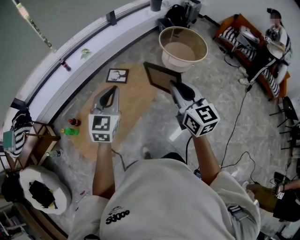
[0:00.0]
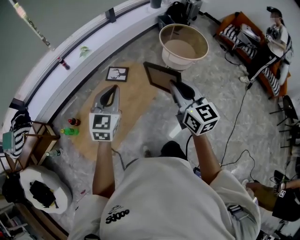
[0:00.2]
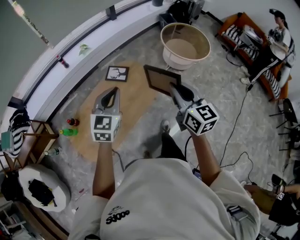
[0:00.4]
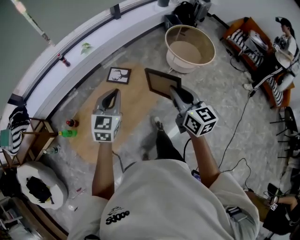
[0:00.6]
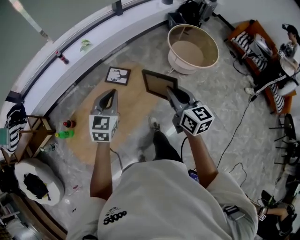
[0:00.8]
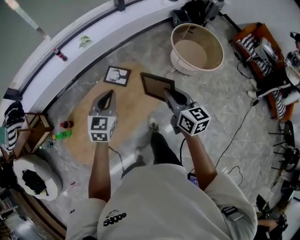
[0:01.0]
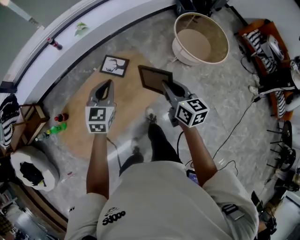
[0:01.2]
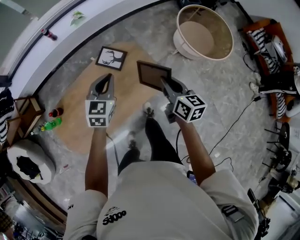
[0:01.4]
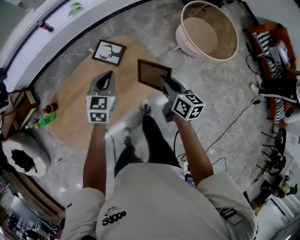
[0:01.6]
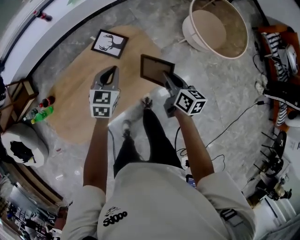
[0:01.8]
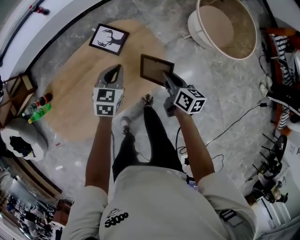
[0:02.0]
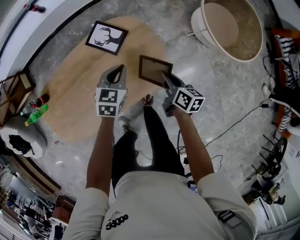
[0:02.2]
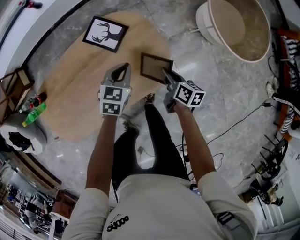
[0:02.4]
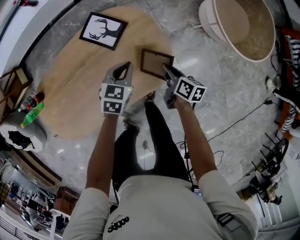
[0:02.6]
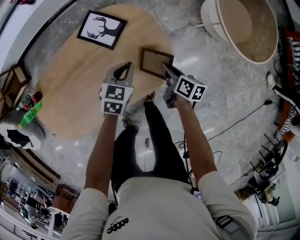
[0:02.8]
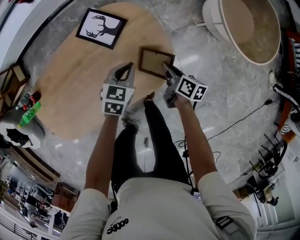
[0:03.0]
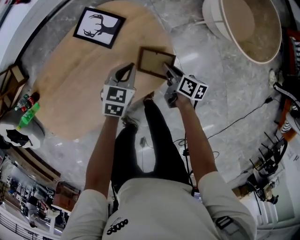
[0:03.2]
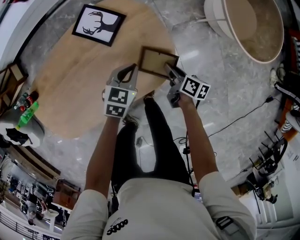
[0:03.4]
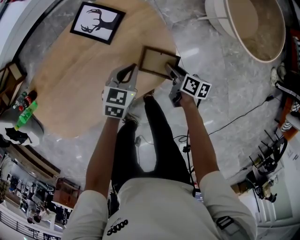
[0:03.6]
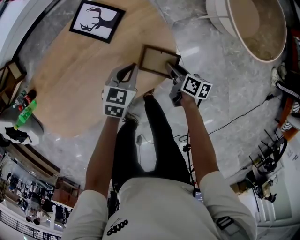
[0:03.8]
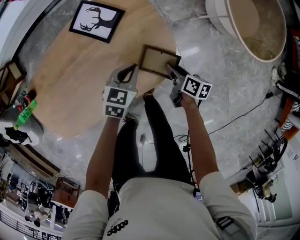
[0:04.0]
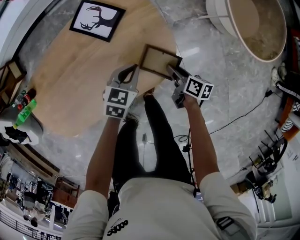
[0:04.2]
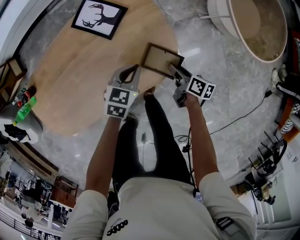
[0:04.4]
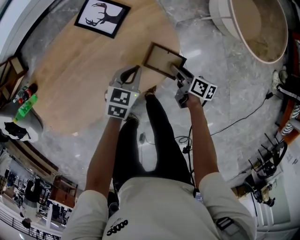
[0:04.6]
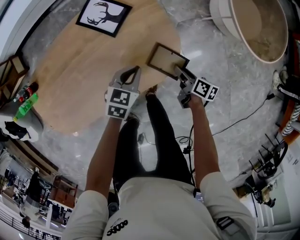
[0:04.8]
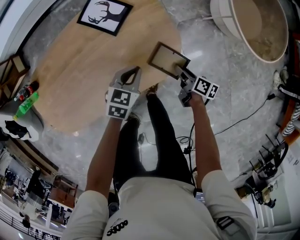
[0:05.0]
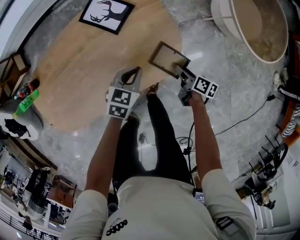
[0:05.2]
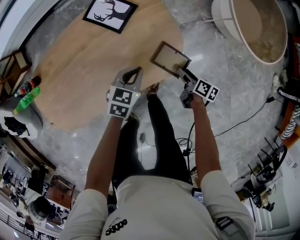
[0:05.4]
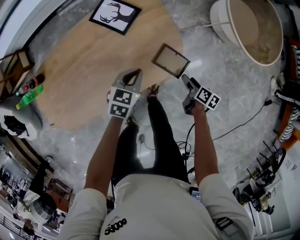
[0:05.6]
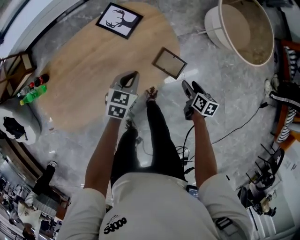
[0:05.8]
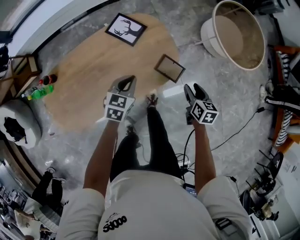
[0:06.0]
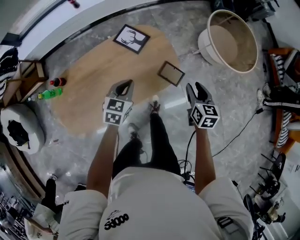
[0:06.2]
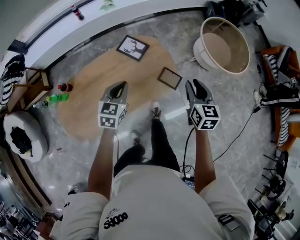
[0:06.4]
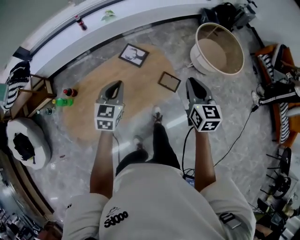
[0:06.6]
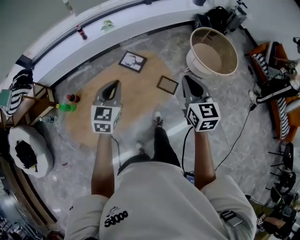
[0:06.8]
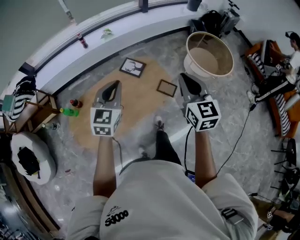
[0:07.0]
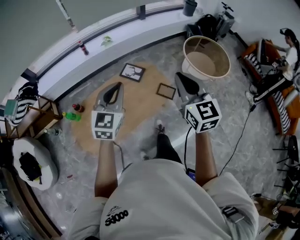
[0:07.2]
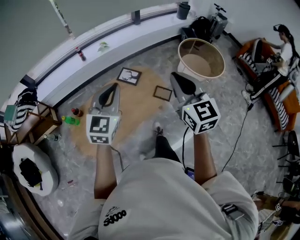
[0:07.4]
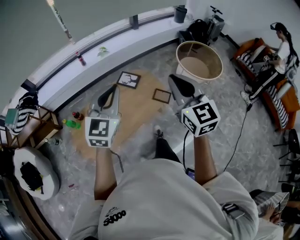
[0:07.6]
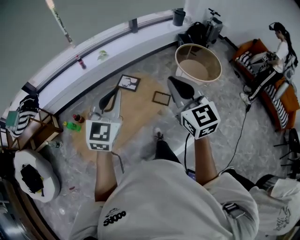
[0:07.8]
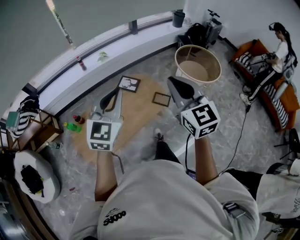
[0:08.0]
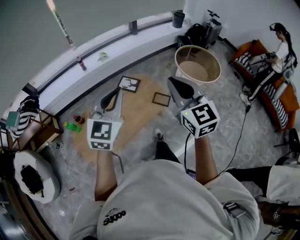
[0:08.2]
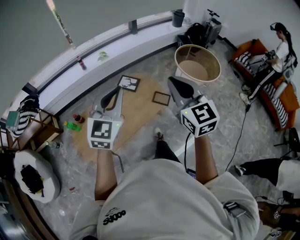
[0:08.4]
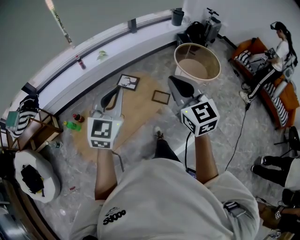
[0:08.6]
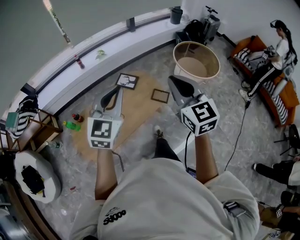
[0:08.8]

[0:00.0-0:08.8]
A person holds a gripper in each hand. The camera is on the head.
0:00.0 to 0:01.4: The two grippers go roughly 35 cm forward and downward. The right gripper swivels about 30 degrees; the left gripper swivels about 20 degrees.
0:01.4 to 0:03.0: The grippers both shift downward by roughly 35 cm. The right gripper changes its angle by about 40 degrees. Meanwhile the left gripper rotates about 20 degrees.
0:03.0 to 0:04.4: The right gripper moves roughly 5 cm, and opens. The left gripper changes place by roughly 5 cm.
0:04.4 to 0:05.8: The right gripper heads backward, upward and to the right, covering about 15 cm, rotates approximately 20 degrees, and opens its fingers. Meanwhile the left gripper goes some 10 cm upward and backward.
0:05.8 to 0:07.4: Both grippers travel together upward, about 60 cm. The left gripper tips its fingers upward by some 40 degrees. Meanwhile the right gripper angles its fingers upward, by approximately 40 degrees, and closes up.
0:07.4 to 0:08.8: The two grippers go some 5 cm backward.

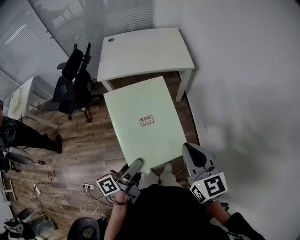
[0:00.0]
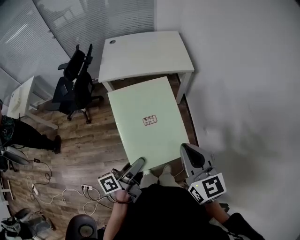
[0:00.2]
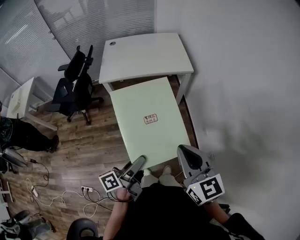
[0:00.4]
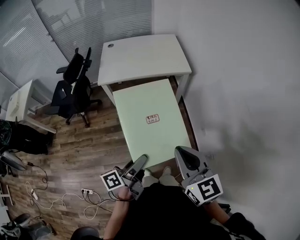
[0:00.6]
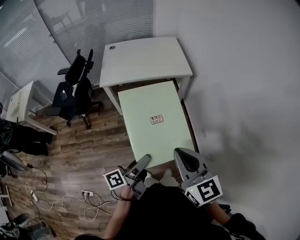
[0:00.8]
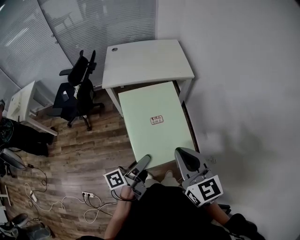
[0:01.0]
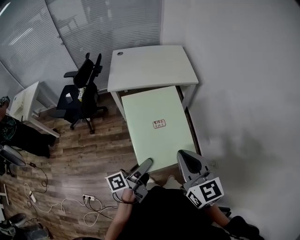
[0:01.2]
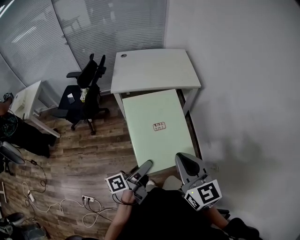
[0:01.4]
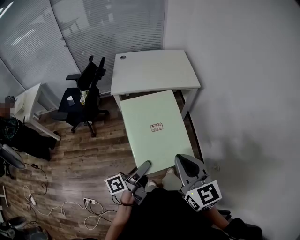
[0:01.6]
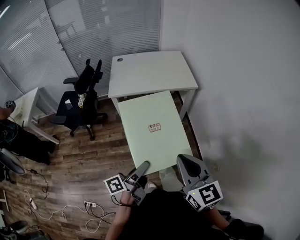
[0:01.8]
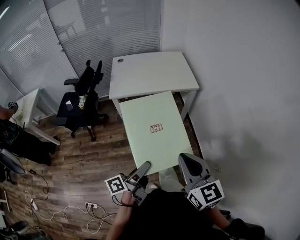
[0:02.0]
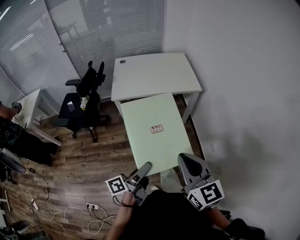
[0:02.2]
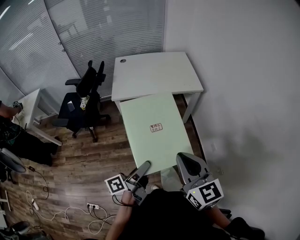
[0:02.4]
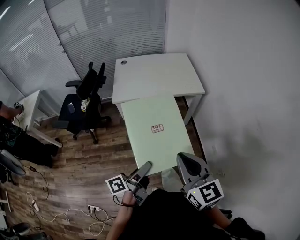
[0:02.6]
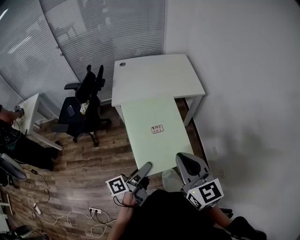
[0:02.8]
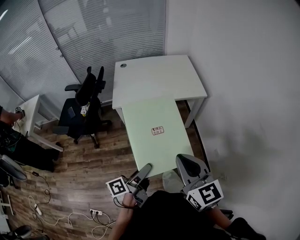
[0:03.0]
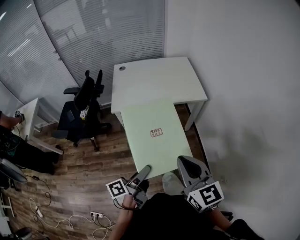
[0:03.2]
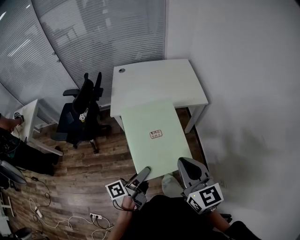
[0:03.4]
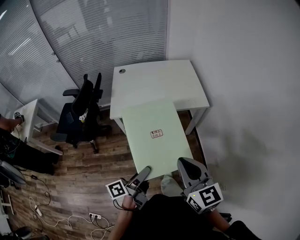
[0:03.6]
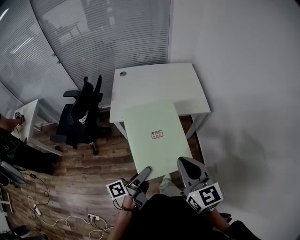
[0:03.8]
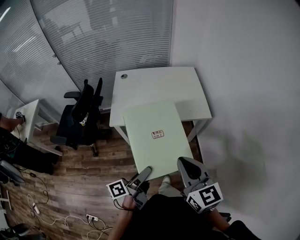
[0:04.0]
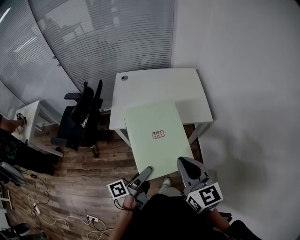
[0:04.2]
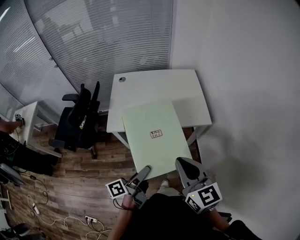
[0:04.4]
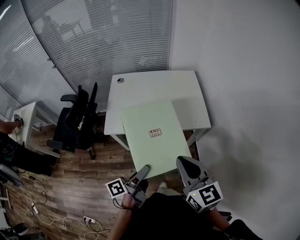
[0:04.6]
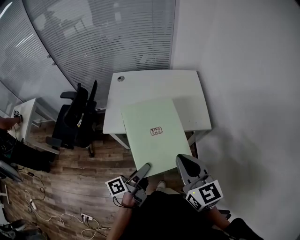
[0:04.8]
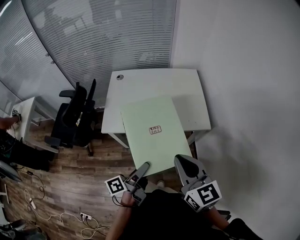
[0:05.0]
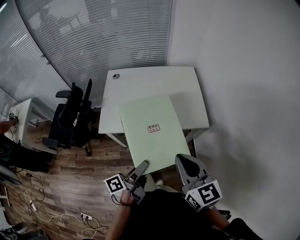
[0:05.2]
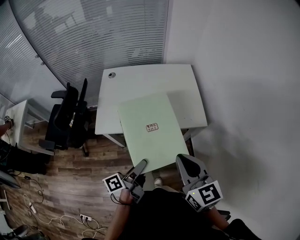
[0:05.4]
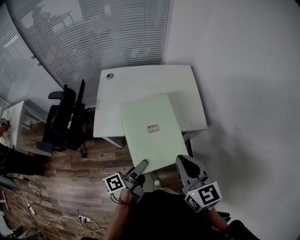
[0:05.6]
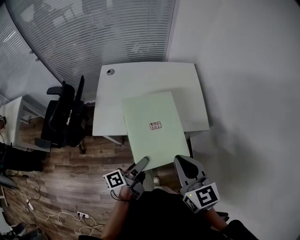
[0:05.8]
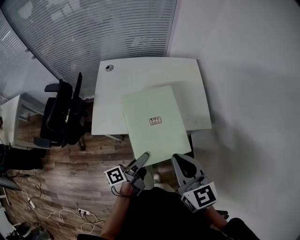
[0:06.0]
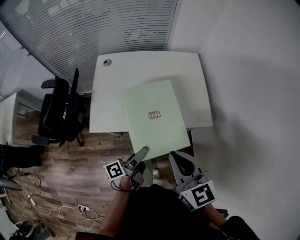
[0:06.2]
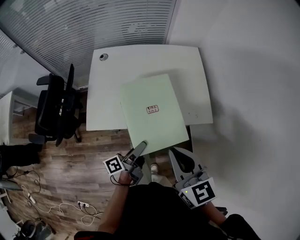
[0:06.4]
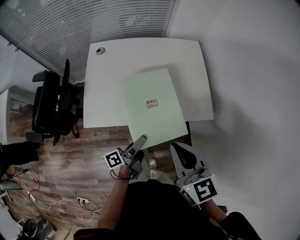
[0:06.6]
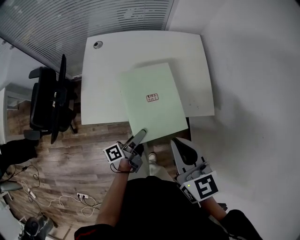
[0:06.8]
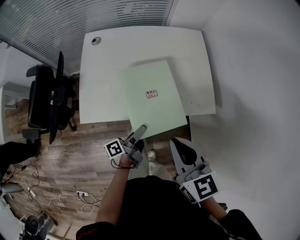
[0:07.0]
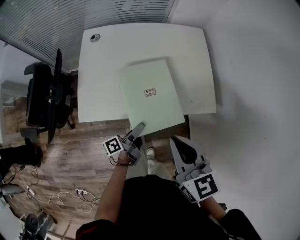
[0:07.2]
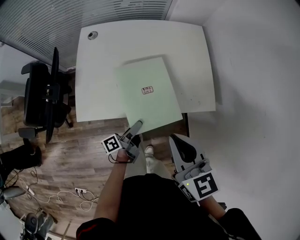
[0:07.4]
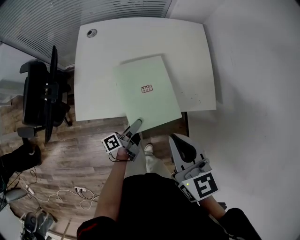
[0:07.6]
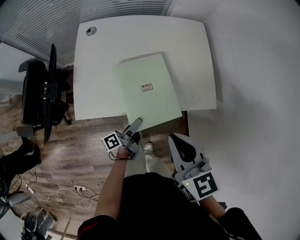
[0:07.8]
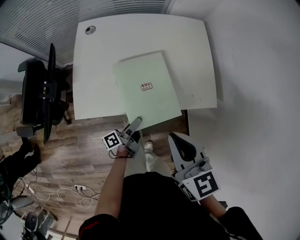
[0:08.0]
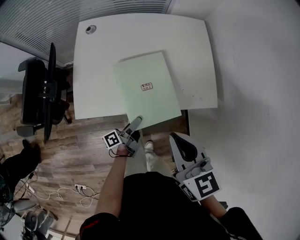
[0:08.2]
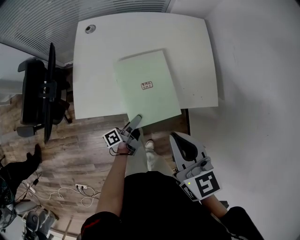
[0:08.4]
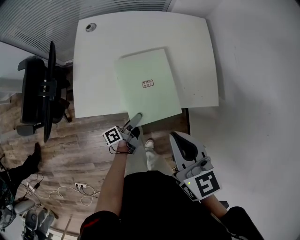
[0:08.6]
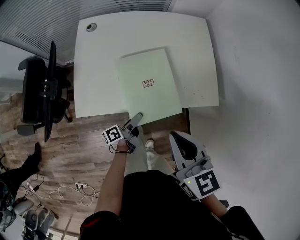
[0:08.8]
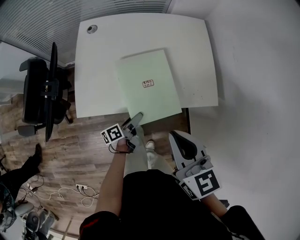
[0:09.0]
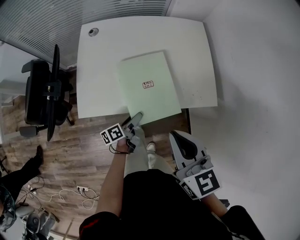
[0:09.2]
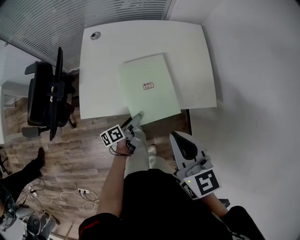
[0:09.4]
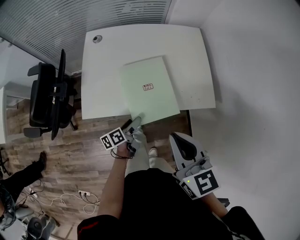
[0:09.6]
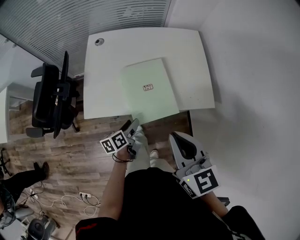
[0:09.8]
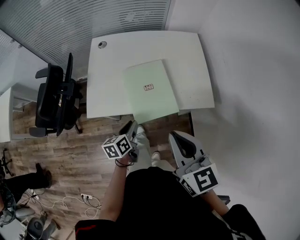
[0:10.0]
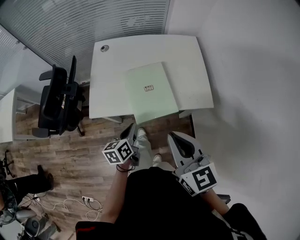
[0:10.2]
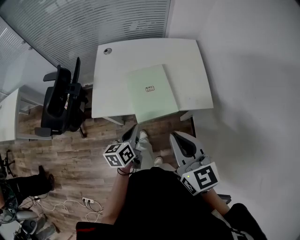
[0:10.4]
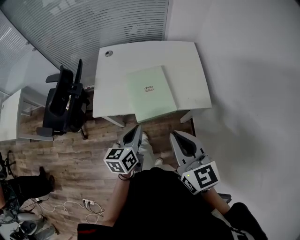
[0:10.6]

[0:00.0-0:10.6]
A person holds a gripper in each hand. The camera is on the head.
0:00.0 to 0:01.6: The left gripper heads to the left, covering roughly 5 cm. The right gripper goes approximately 15 cm to the left.
0:01.6 to 0:03.0: Both grippers travel together forward, some 10 cm.
0:03.0 to 0:04.6: Both grippers travel together forward, about 25 cm.
0:04.6 to 0:06.0: The left gripper shifts some 15 cm forward and downward. Meanwhile the right gripper travels forward by approximately 10 cm.
0:06.0 to 0:07.6: The right gripper heads forward and downward, covering about 10 cm. The left gripper moves downward and forward, some 20 cm.
0:07.6 to 0:09.0: The grippers make only small movements.
0:09.0 to 0:10.6: The right gripper is displaced backward and upward by approximately 15 cm; the left gripper shifts roughly 25 cm upward, twists about 50 degrees clockwise, seen from behind, and closes its fingers.

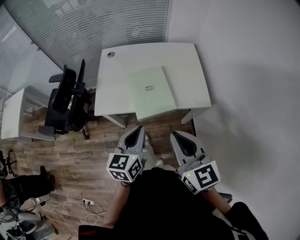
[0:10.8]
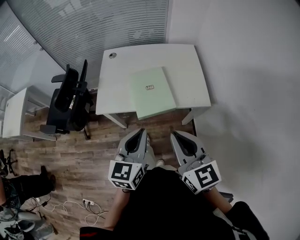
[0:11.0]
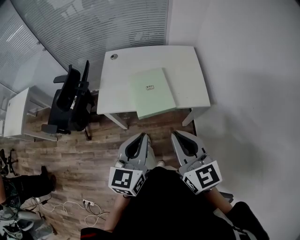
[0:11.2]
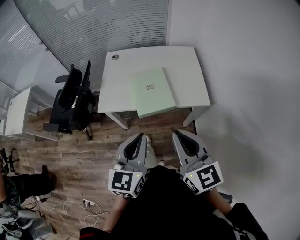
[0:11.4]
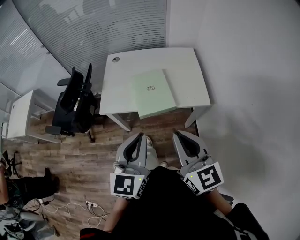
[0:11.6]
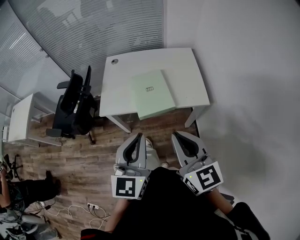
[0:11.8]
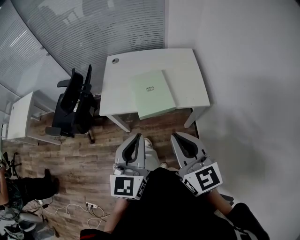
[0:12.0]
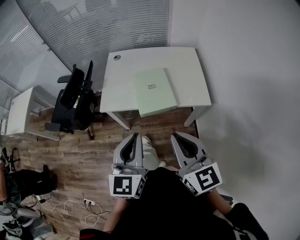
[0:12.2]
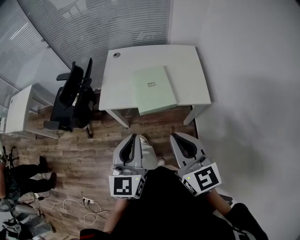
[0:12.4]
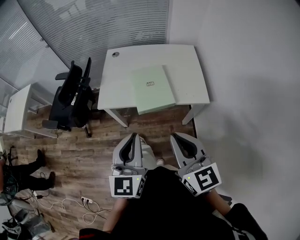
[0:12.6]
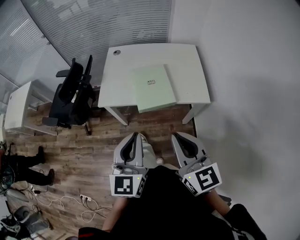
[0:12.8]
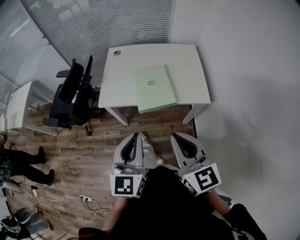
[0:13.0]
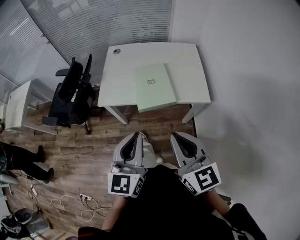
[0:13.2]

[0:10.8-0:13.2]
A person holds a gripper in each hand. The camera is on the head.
0:10.8 to 0:12.0: The right gripper shifts some 5 cm backward. The left gripper shifts approximately 15 cm upward and backward, and changes its angle by about 20 degrees.
0:12.0 to 0:13.2: The grippers move only a little.

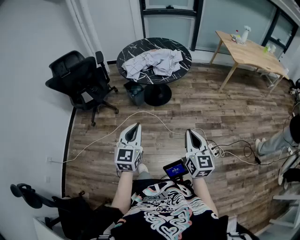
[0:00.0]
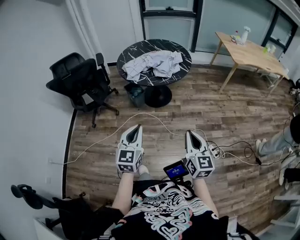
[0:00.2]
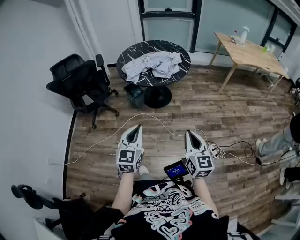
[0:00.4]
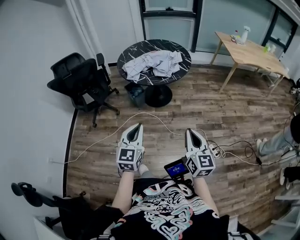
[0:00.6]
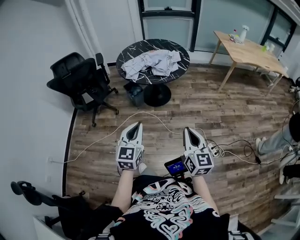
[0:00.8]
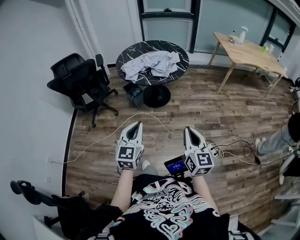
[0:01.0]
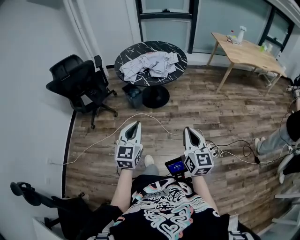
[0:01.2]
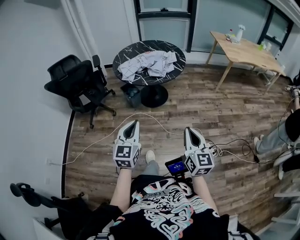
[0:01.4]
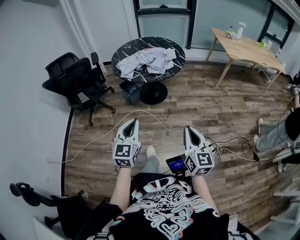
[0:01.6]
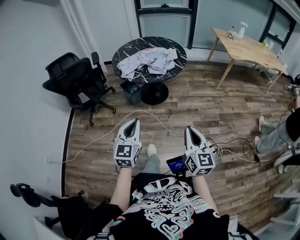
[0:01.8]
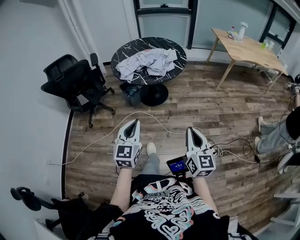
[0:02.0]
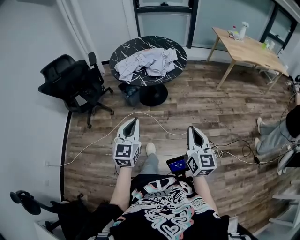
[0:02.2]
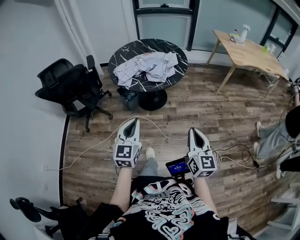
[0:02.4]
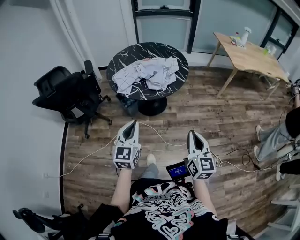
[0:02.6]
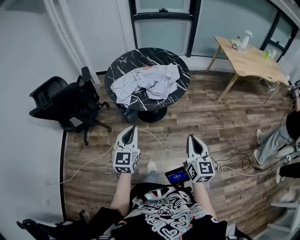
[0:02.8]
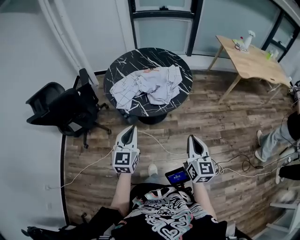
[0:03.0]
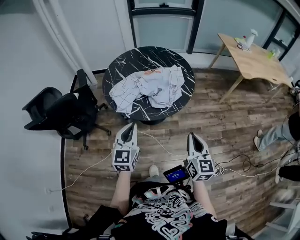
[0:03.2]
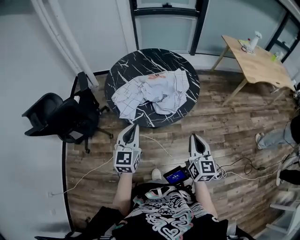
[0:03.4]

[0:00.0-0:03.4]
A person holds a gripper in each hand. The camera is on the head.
0:00.0 to 0:01.6: The grippers move only a little.
0:01.6 to 0:03.4: Both grippers move forward, about 40 cm.
